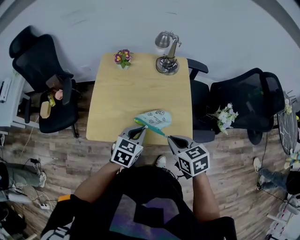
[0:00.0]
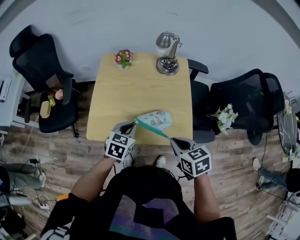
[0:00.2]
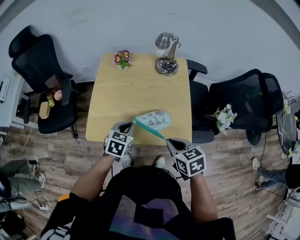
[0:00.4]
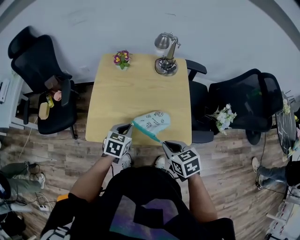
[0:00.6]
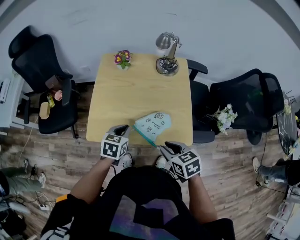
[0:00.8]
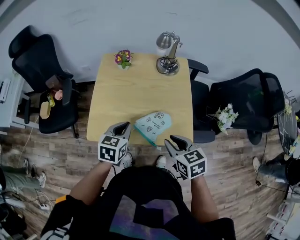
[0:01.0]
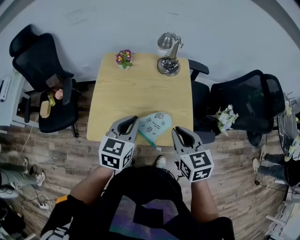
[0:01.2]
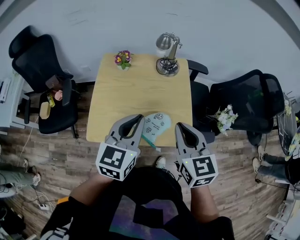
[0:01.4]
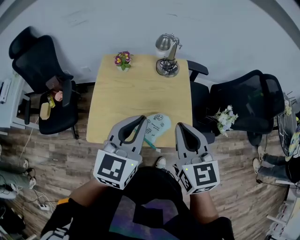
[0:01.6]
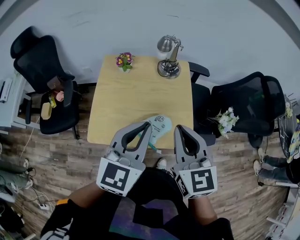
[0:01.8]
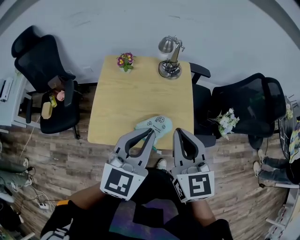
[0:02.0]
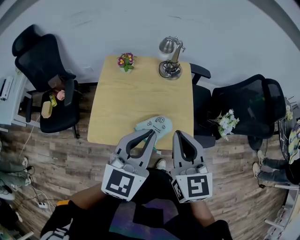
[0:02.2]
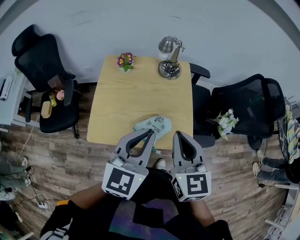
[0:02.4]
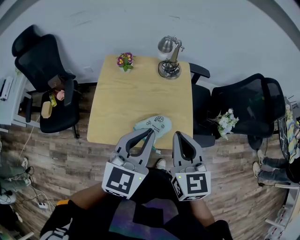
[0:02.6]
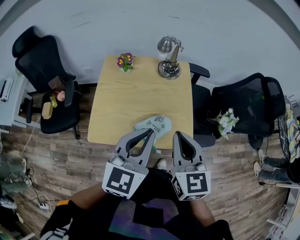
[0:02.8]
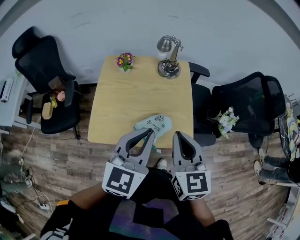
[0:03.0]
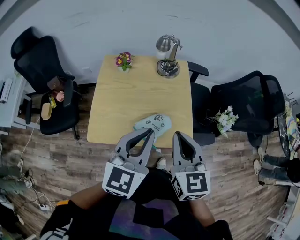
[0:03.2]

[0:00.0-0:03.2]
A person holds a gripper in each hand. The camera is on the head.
0:00.0 to 0:01.6: Both grippers move upward, approximately 20 cm. The right gripper rotates roughly 30 degrees, and opens, then closes once more. Meanwhile the left gripper swivels about 30 degrees.
0:01.6 to 0:03.2: The grippers move only a little.

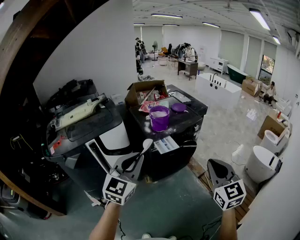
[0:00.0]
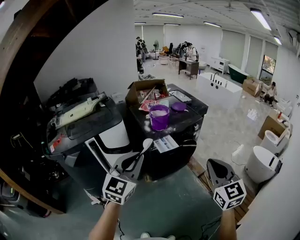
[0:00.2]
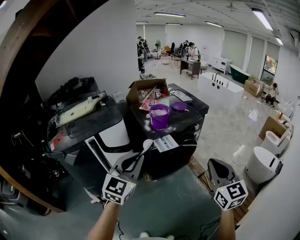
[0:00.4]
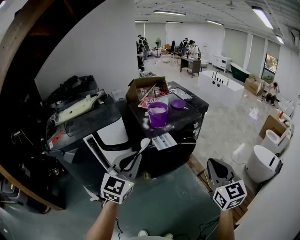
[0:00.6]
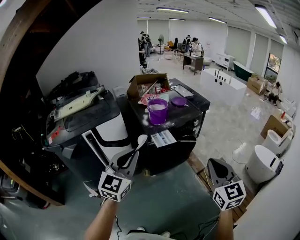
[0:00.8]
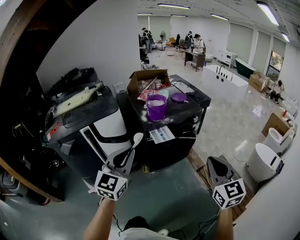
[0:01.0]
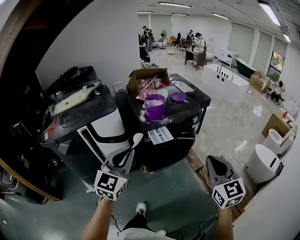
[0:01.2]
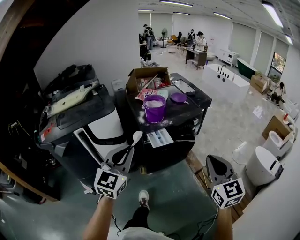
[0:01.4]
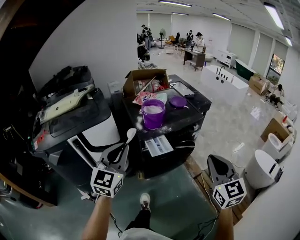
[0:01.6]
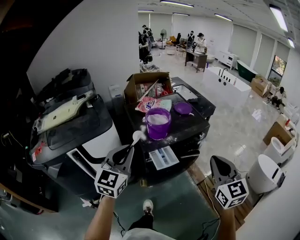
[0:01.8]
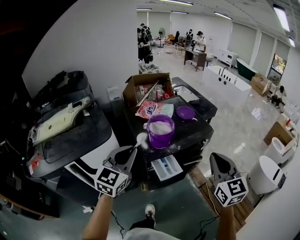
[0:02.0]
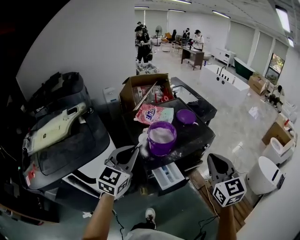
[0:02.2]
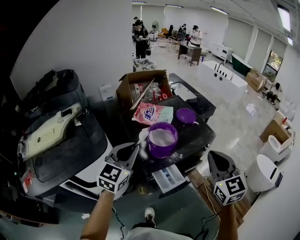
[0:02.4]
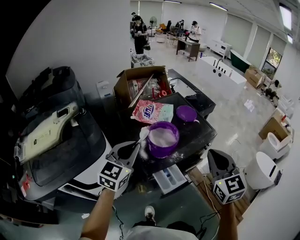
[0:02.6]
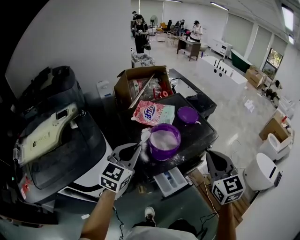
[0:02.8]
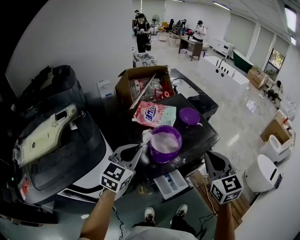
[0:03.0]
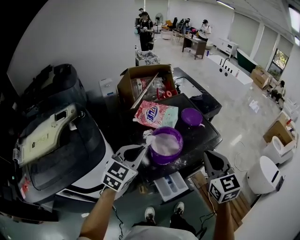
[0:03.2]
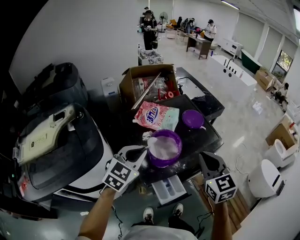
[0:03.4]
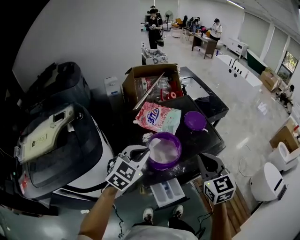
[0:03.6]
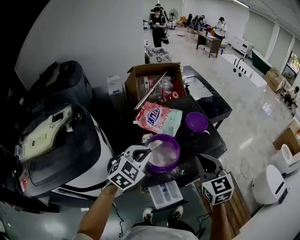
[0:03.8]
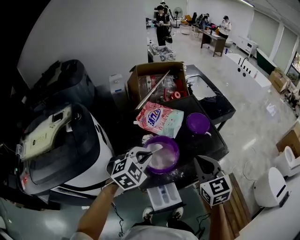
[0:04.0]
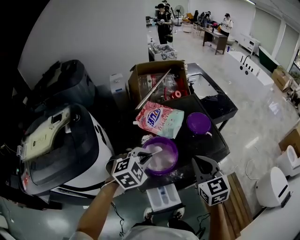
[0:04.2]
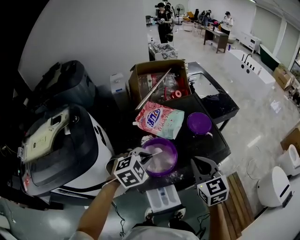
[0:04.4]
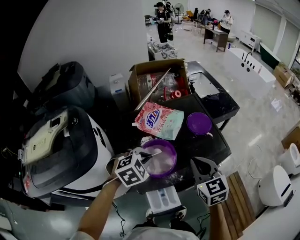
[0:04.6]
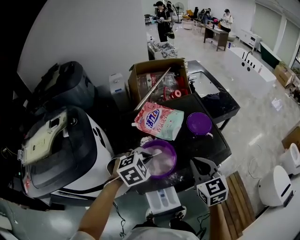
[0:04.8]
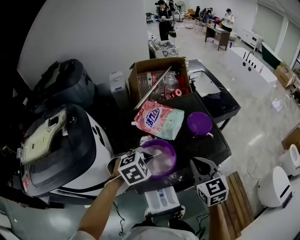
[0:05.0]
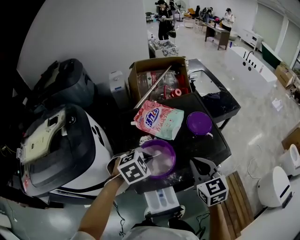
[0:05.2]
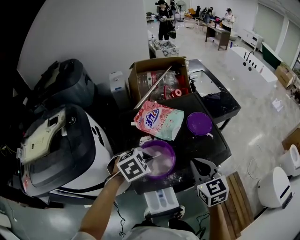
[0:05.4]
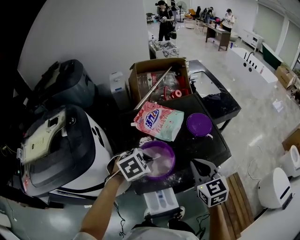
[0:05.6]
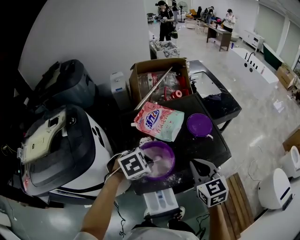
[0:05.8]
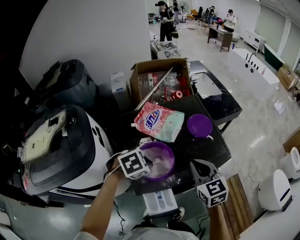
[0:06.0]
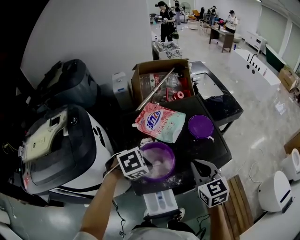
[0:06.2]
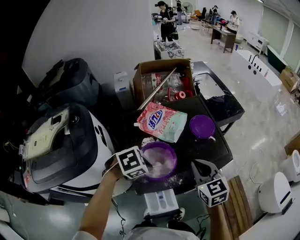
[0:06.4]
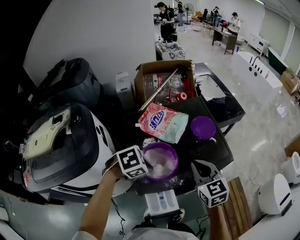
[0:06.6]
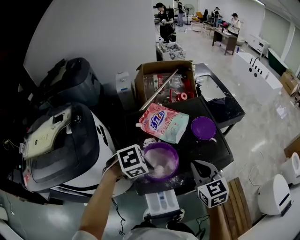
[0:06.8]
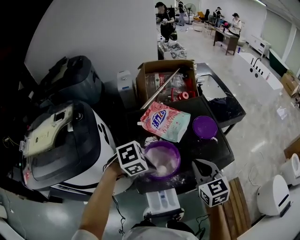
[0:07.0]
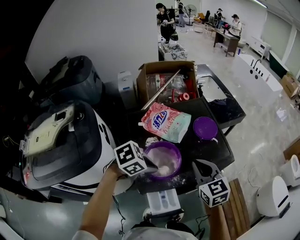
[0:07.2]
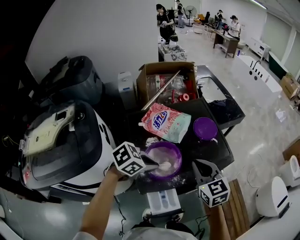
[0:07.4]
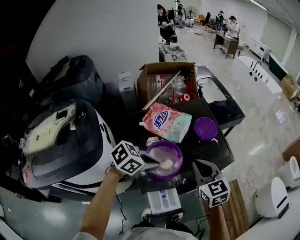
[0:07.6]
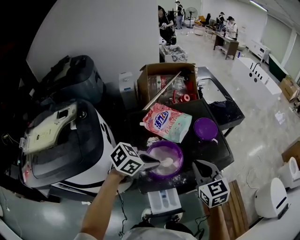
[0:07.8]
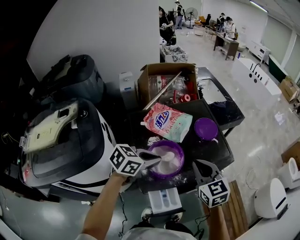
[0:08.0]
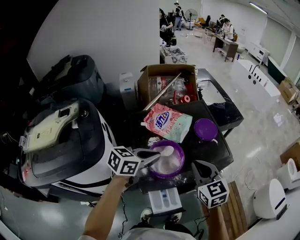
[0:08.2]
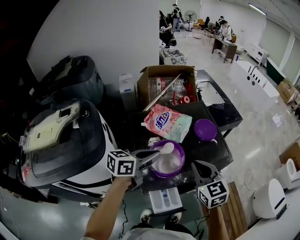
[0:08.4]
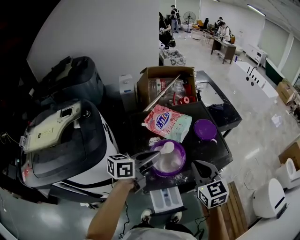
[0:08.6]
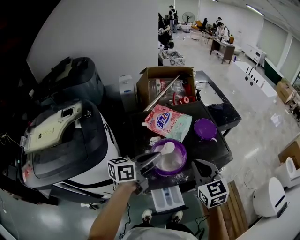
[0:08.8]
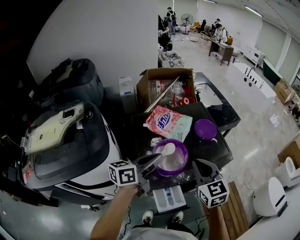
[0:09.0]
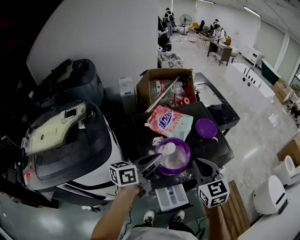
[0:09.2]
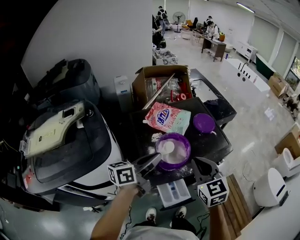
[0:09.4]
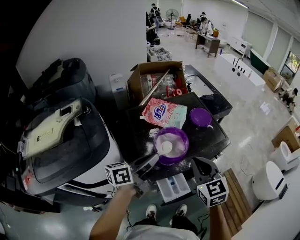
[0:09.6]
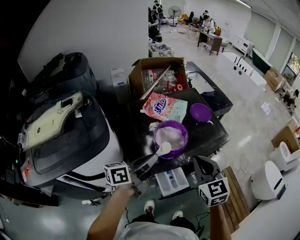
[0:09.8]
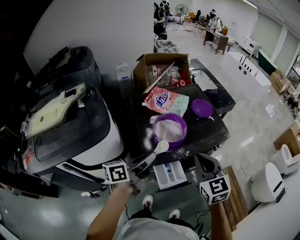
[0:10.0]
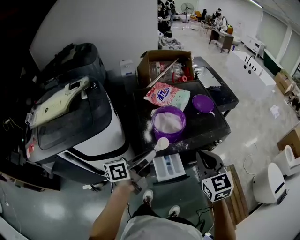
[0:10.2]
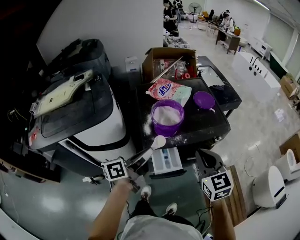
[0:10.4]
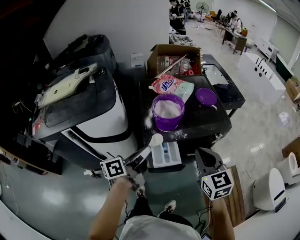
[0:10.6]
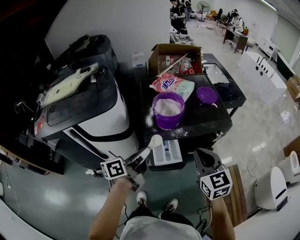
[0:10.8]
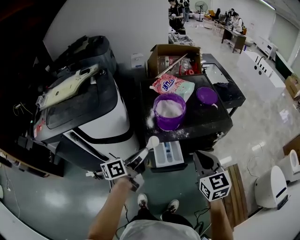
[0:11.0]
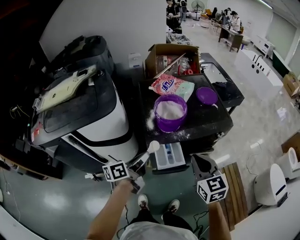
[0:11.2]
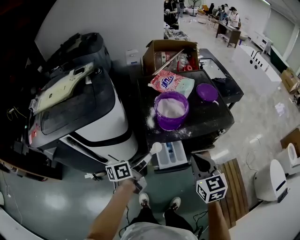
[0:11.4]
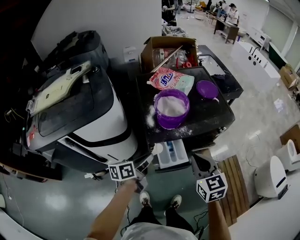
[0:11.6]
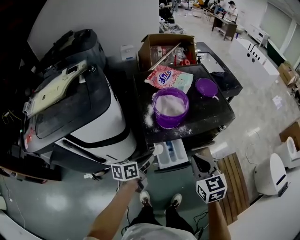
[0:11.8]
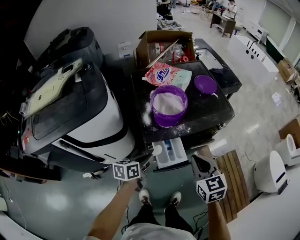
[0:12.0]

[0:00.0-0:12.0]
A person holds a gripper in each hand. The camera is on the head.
0:00.0 to 0:01.6: The right gripper moves forward and to the right, roughly 15 cm. Meanwhile the left gripper moves forward, roughly 15 cm.
0:01.6 to 0:03.0: The left gripper goes roughly 35 cm forward, and rotates some 20 degrees, while the right gripper travels forward and to the left by about 35 cm.
0:03.0 to 0:04.4: The left gripper heads downward, to the right and forward, covering about 15 cm, and angles its fingers downward, by about 40 degrees. Meanwhile the right gripper moves forward and downward, some 15 cm.
0:04.4 to 0:06.0: The left gripper rotates about 30 degrees.
0:06.0 to 0:07.6: The left gripper turns by roughly 30 degrees.
0:07.6 to 0:09.0: The right gripper ends up about 5 cm from where it was. Meanwhile the left gripper travels upward by about 5 cm, and tilts its fingers about 40 degrees upward.
0:09.0 to 0:10.4: The left gripper is displaced backward by roughly 20 cm, and rotates about 20 degrees, while the right gripper travels backward and to the right by some 15 cm.
0:10.4 to 0:12.0: The left gripper shifts about 20 cm downward, and tilts its fingers approximately 30 degrees downward. Meanwhile the right gripper shifts approximately 10 cm downward.

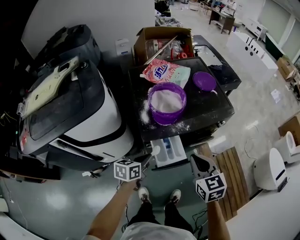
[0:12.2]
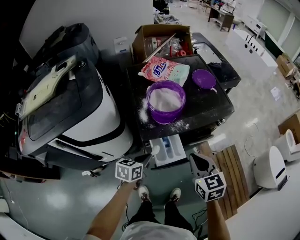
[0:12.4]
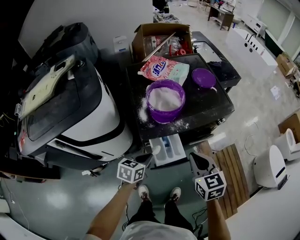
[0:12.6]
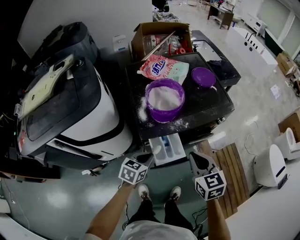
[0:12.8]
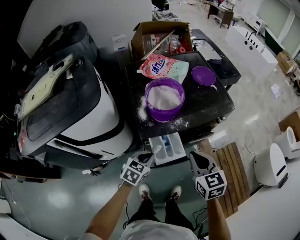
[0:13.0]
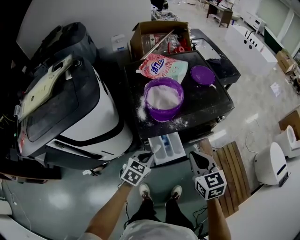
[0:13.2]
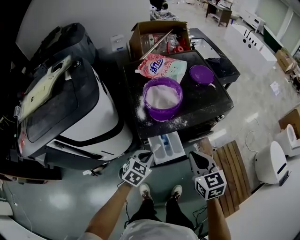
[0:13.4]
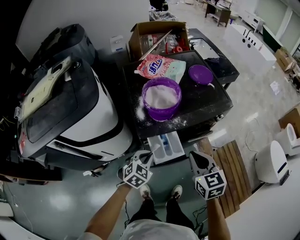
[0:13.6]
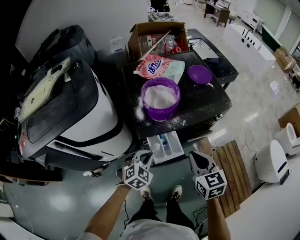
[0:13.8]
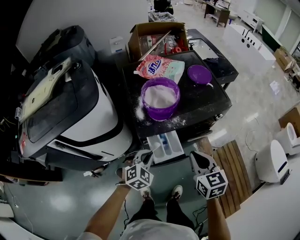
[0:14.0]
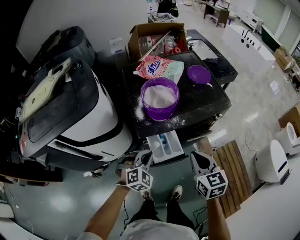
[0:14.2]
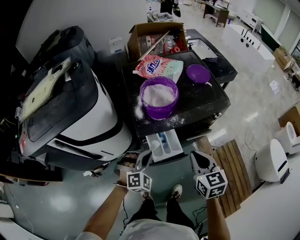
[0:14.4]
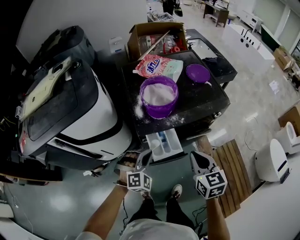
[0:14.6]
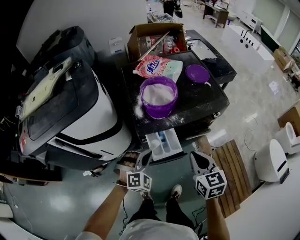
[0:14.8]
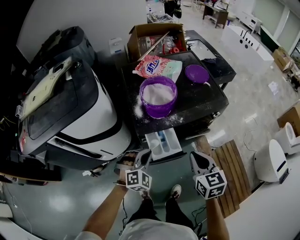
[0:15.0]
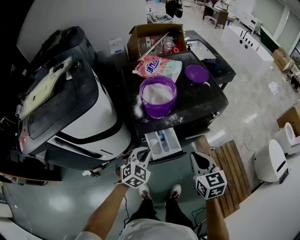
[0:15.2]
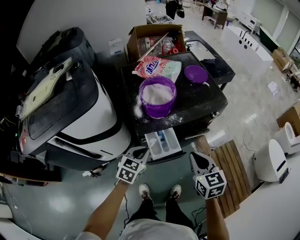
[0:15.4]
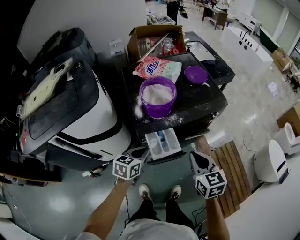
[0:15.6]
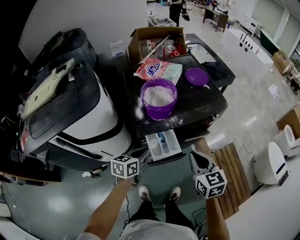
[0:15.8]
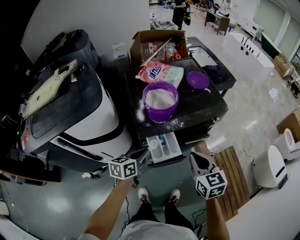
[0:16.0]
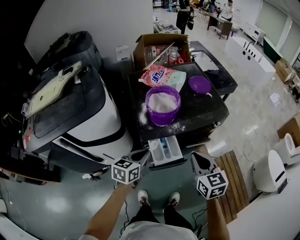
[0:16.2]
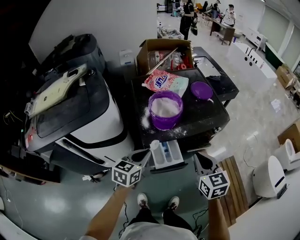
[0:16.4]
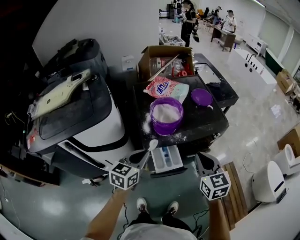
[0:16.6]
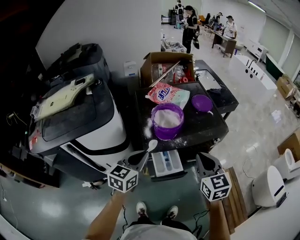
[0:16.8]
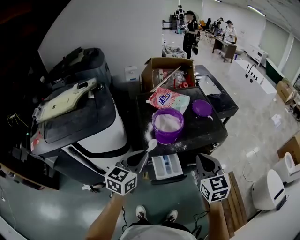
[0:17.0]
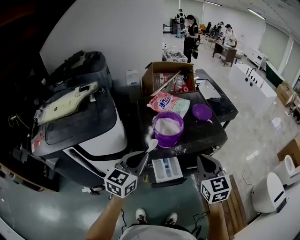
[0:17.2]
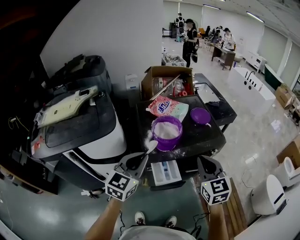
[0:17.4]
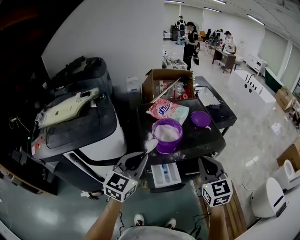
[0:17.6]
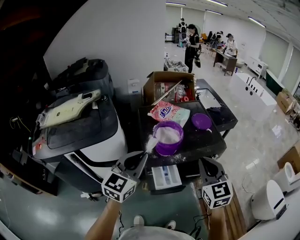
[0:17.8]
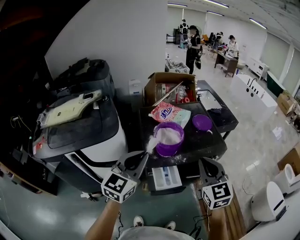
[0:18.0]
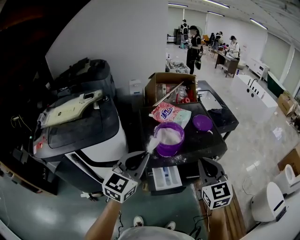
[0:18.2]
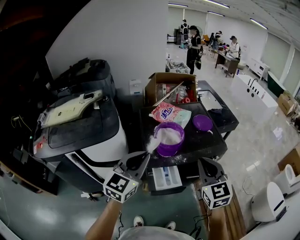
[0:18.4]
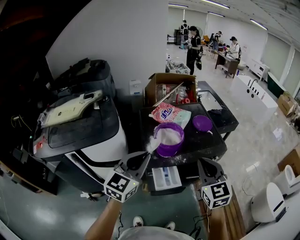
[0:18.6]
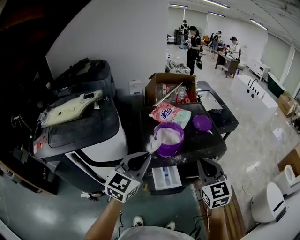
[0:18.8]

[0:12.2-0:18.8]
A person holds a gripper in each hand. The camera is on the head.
0:12.2 to 0:13.8: The left gripper rotates around the line of its fingers by some 60 degrees, clockwise from behind.
0:13.8 to 0:15.4: The left gripper swivels some 30 degrees.
0:15.4 to 0:17.2: The right gripper heads upward and forward, covering about 15 cm. Meanwhile the left gripper shifts approximately 20 cm upward, and changes its angle by about 30 degrees.
0:17.2 to 0:18.8: The left gripper goes about 5 cm upward.

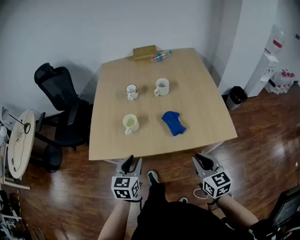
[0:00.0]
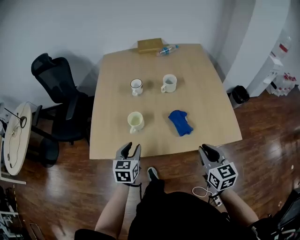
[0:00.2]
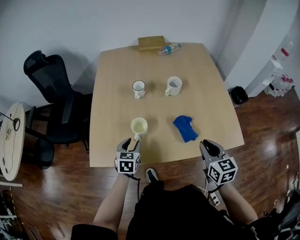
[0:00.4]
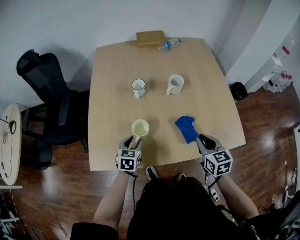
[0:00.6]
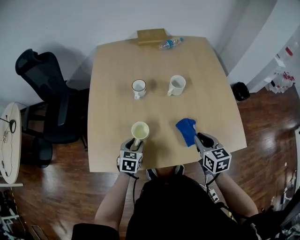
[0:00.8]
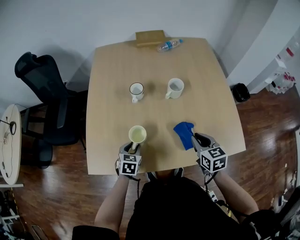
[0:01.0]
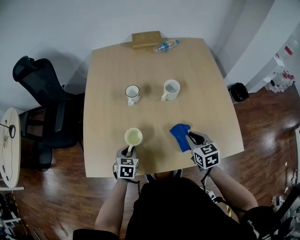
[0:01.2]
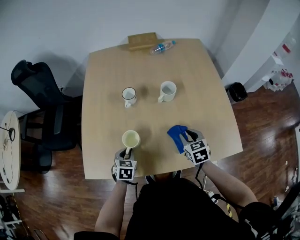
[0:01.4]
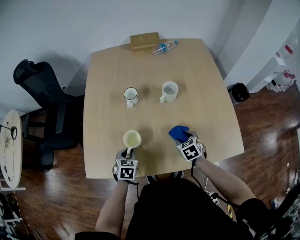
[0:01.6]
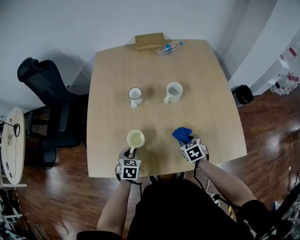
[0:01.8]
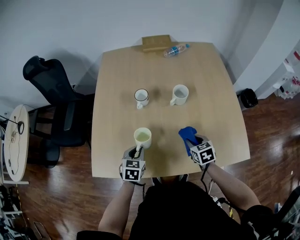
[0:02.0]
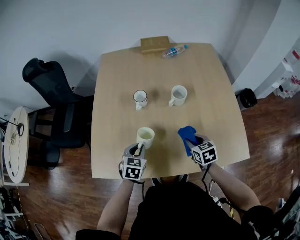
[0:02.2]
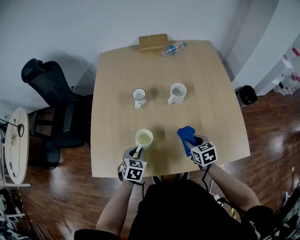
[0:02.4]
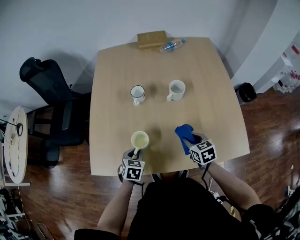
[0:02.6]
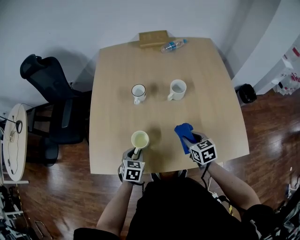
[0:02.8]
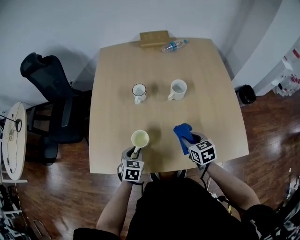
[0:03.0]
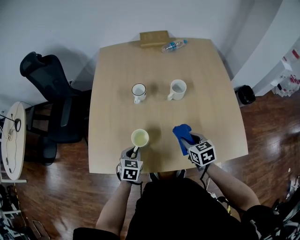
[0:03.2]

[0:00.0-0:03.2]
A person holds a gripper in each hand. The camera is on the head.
0:00.0 to 0:01.6: The grippers both shift forward and downward by approximately 30 cm. The right gripper tips its fingers downward by roughly 30 degrees, and opens up. Meanwhile the left gripper changes its angle by about 20 degrees.
0:01.6 to 0:03.2: The right gripper shifts some 5 cm upward, and closes up.
